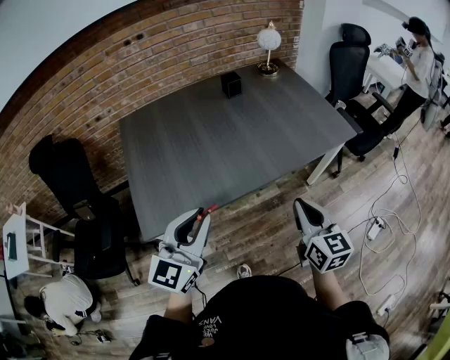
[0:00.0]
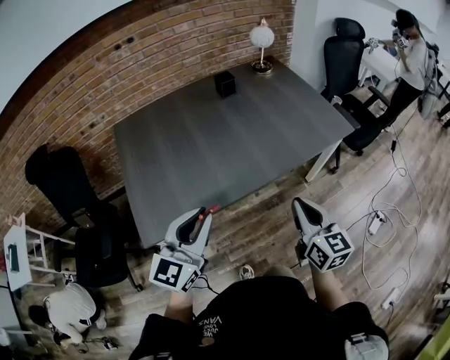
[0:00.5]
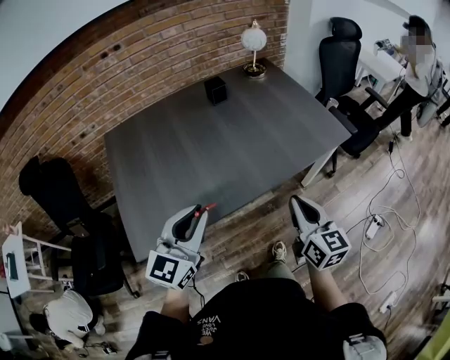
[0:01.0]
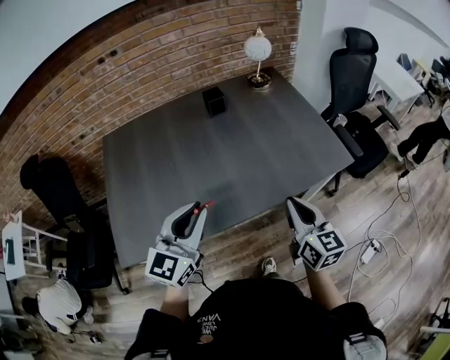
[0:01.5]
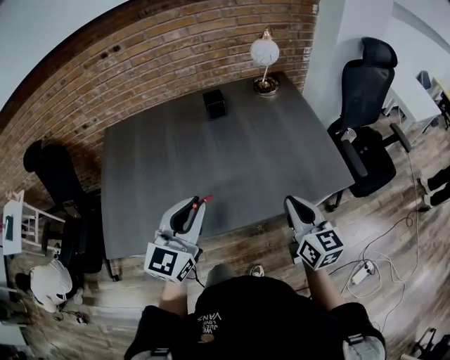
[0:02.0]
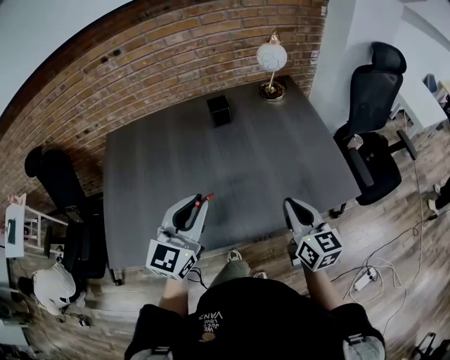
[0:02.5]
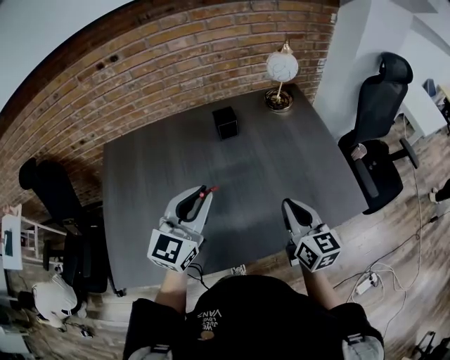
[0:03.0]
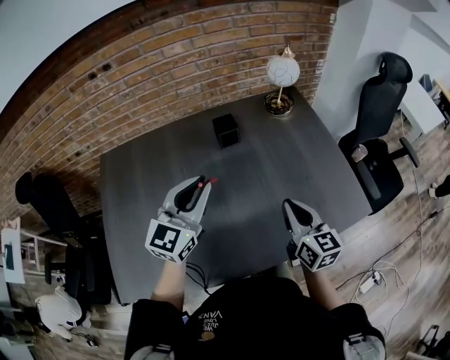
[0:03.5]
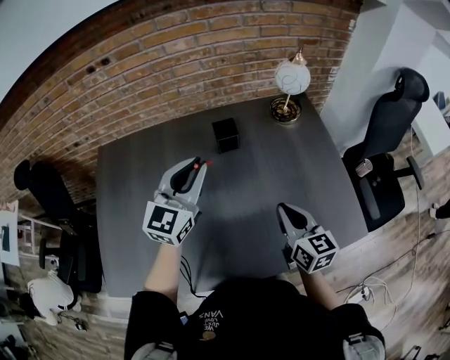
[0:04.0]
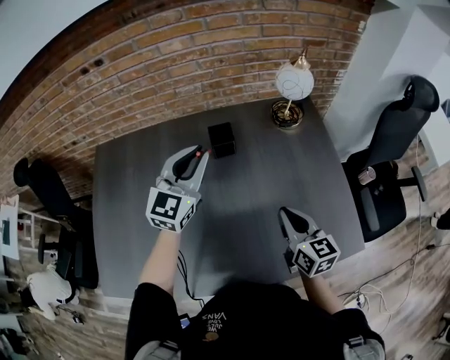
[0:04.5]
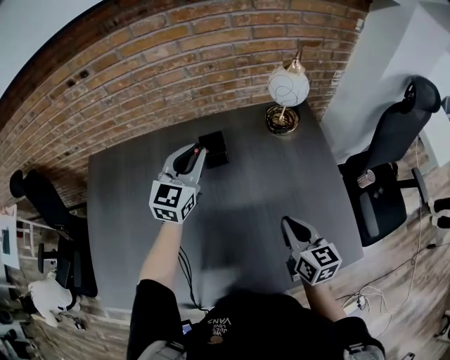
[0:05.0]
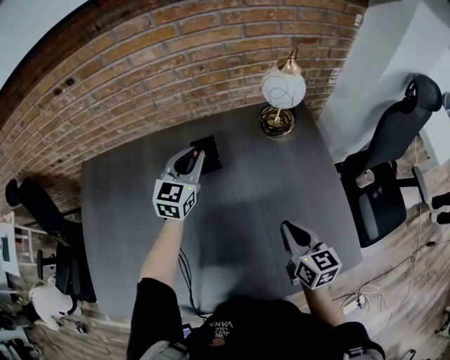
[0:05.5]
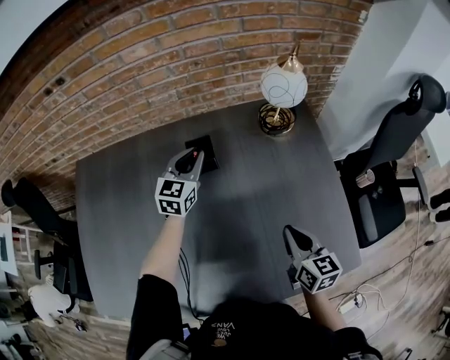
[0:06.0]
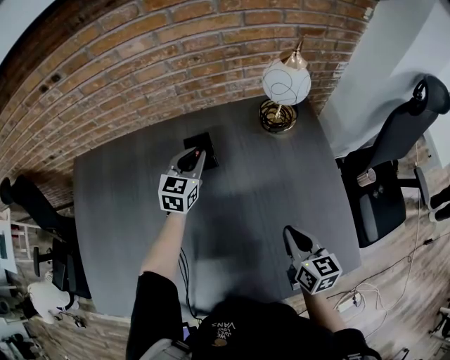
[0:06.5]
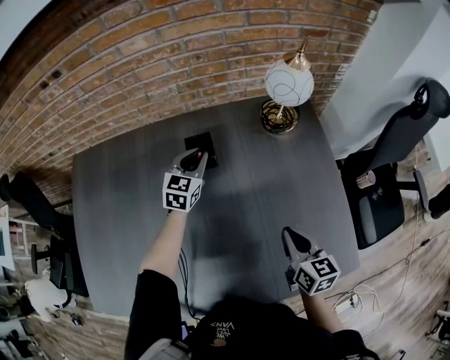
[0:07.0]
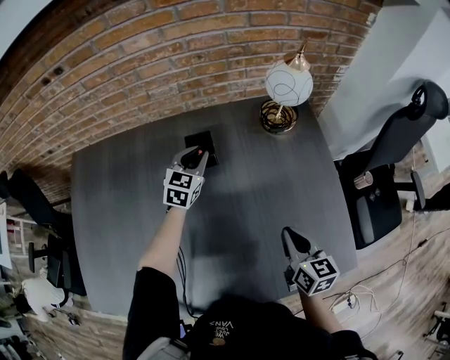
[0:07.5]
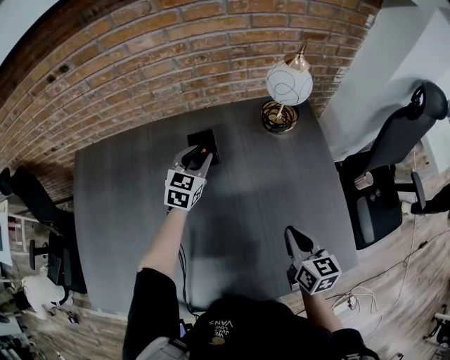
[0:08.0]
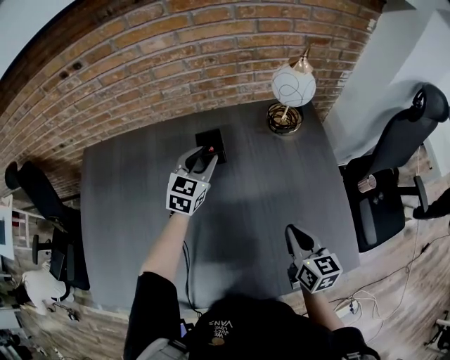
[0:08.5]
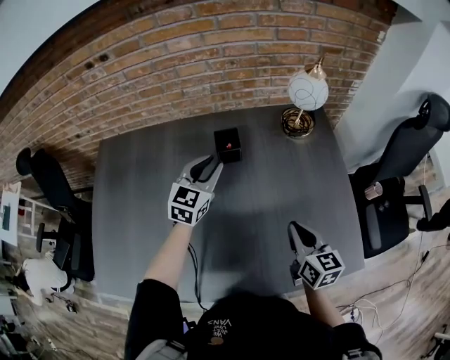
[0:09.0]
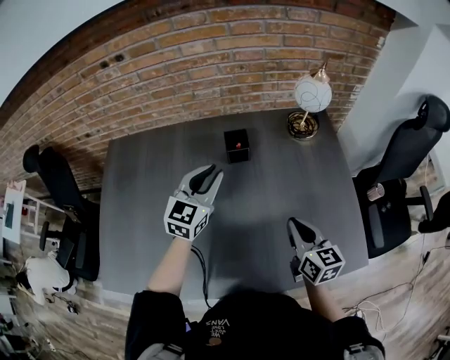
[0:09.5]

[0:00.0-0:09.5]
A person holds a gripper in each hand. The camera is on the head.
0.0 to 2.0 s: Both grippers travel together forward and to the right, roughly 30 cm.
2.0 to 4.0 s: Both grippers move forward, about 25 cm.
4.0 to 5.5 s: The right gripper travels to the right, forward and downward by approximately 10 cm. Meanwhile the left gripper heads forward and downward, covering some 20 cm.
5.5 to 7.5 s: The left gripper heads downward, covering roughly 10 cm.
7.5 to 9.5 s: The right gripper moves to the left and upward, about 10 cm, while the left gripper travels backward and upward by roughly 20 cm.

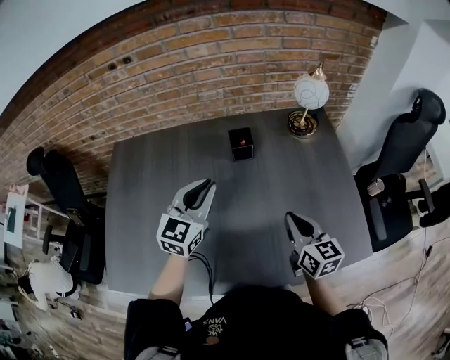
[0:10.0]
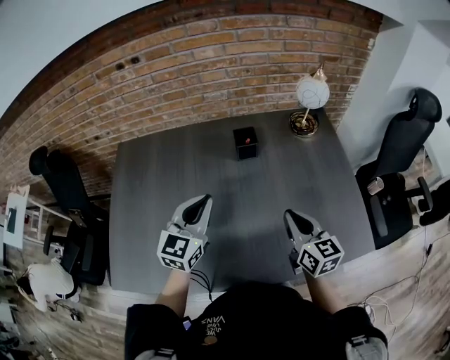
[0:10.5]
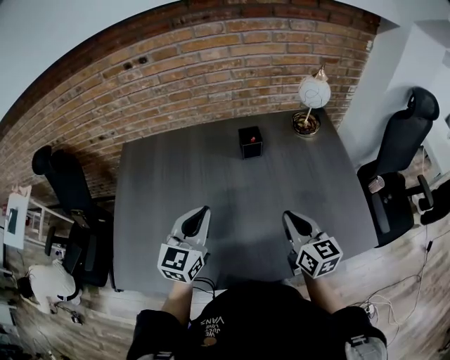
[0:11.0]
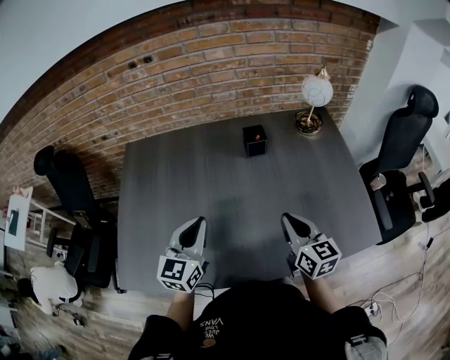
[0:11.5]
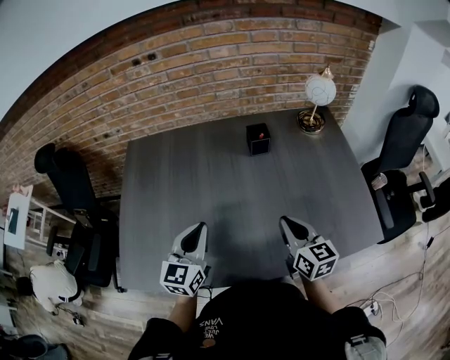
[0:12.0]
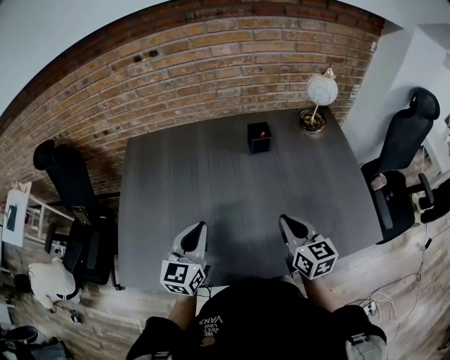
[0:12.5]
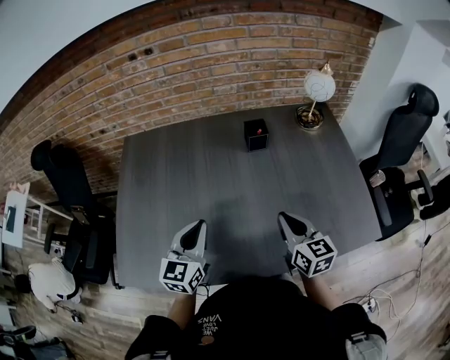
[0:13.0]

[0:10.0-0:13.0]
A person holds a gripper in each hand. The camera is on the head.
10.0 to 11.5 s: The left gripper shifts roughly 15 cm backward and to the left. The right gripper is displaced to the left and backward by about 10 cm.
11.5 to 13.0 s: The grippers stay close to where they were, moving slightly.

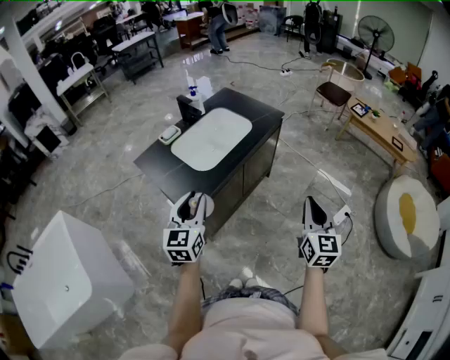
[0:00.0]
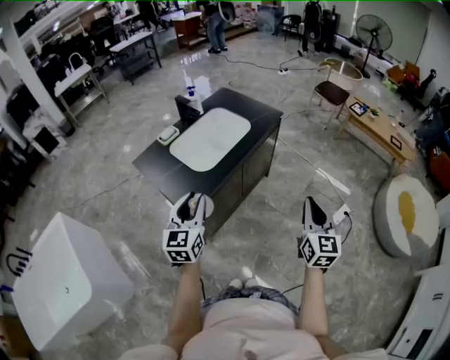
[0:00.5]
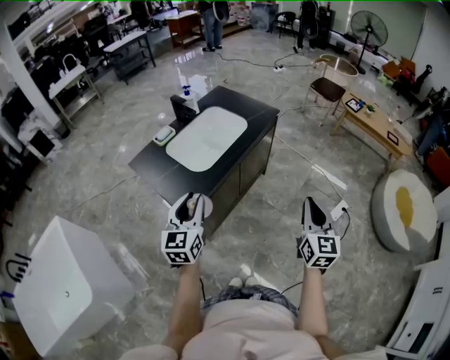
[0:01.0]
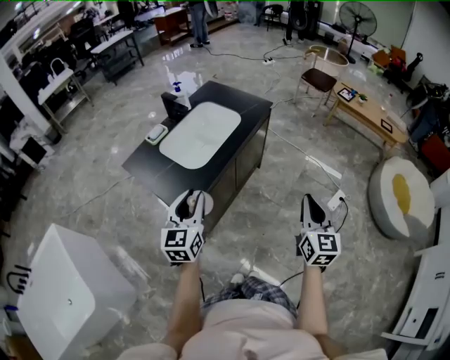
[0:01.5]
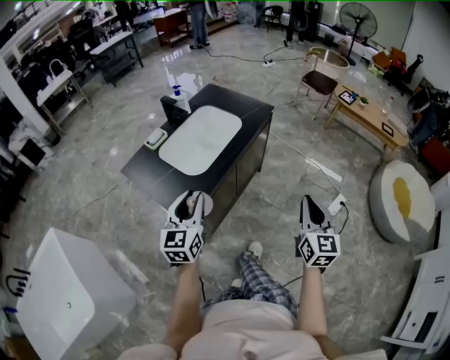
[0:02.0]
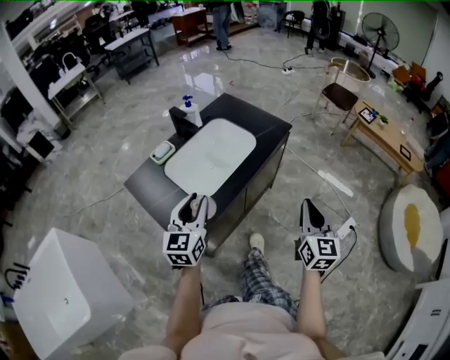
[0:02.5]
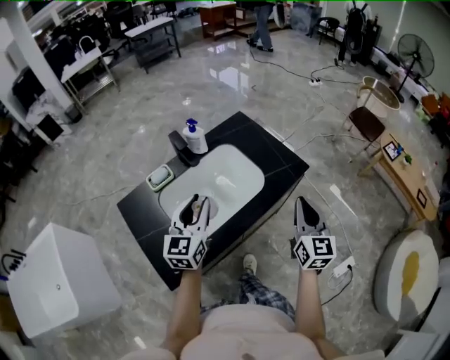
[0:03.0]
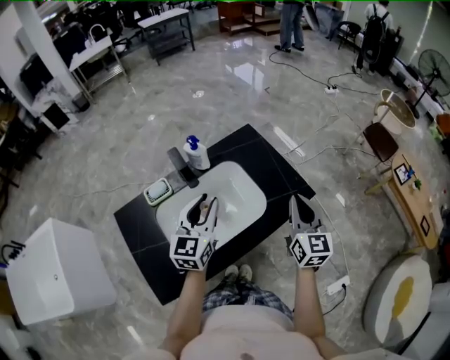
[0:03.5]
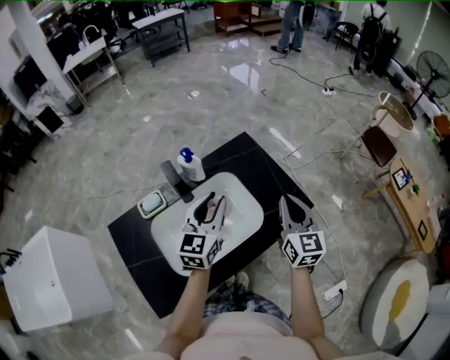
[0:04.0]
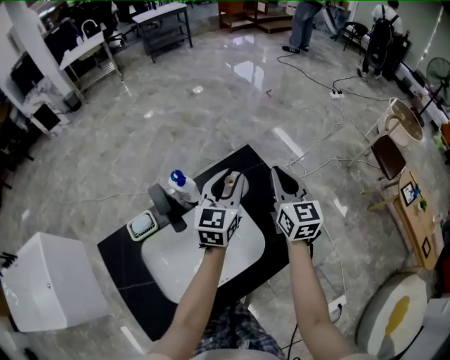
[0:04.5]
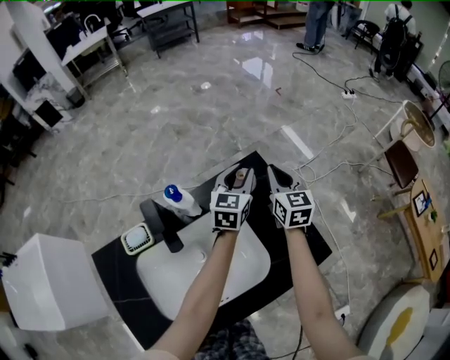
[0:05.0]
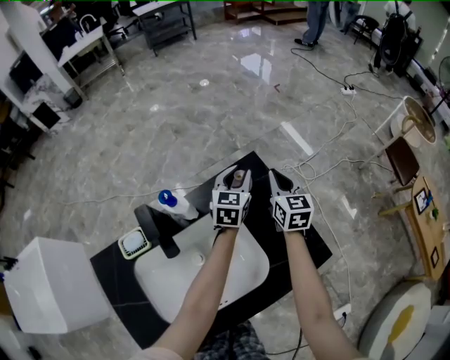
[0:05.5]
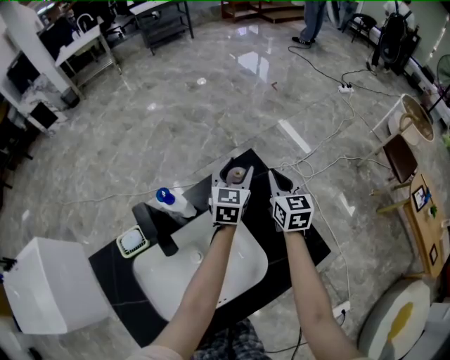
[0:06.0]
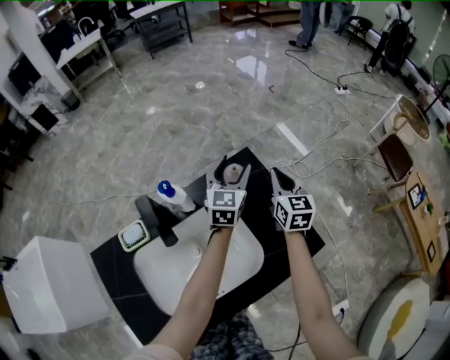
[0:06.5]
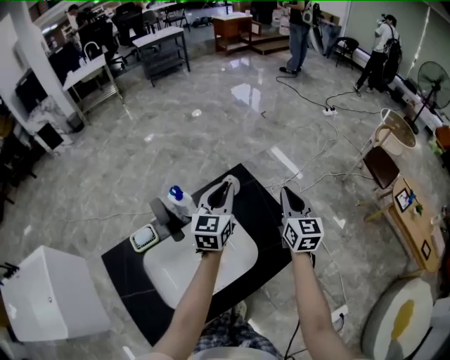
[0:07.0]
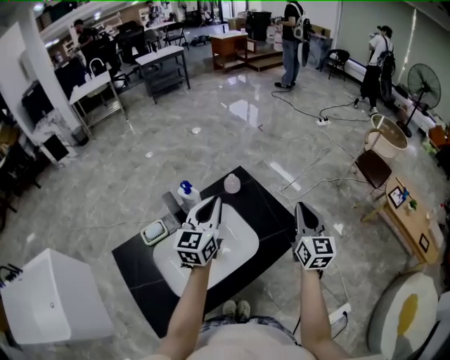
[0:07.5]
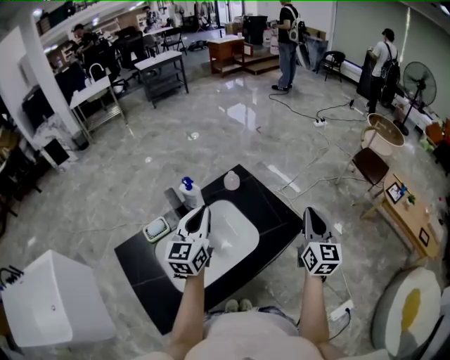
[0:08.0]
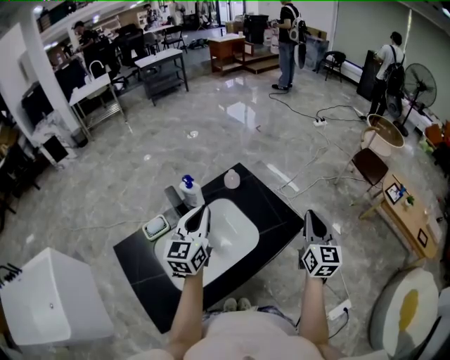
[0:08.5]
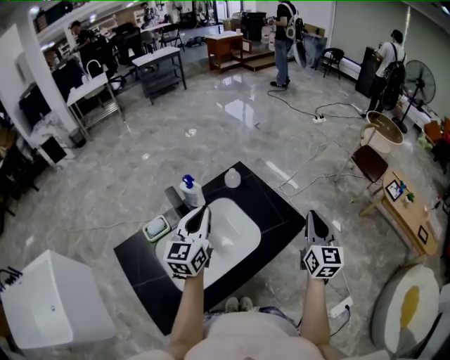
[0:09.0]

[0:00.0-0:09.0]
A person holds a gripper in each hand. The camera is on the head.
0.0 to 2.0 s: The left gripper heads forward, covering some 5 cm.
2.0 to 4.5 s: The two grippers travel together, forward, some 90 cm. The right gripper swivels about 30 degrees.
4.5 to 7.0 s: The right gripper travels to the right by roughly 10 cm, and goes forward and returns, approximately 15 cm each way; the left gripper travels downward and back again, roughly 15 cm each way, and opens and closes again.
7.0 to 9.0 s: Both grippers move backward, roughly 25 cm.

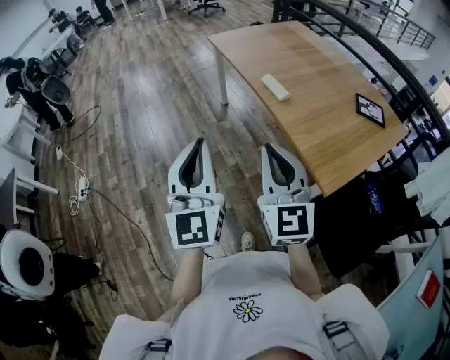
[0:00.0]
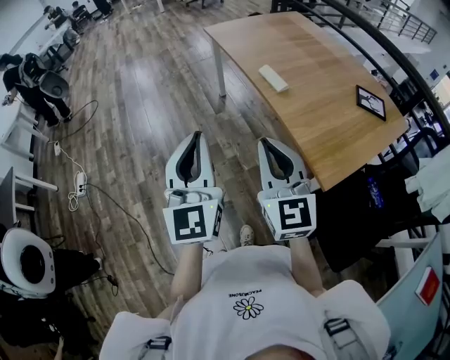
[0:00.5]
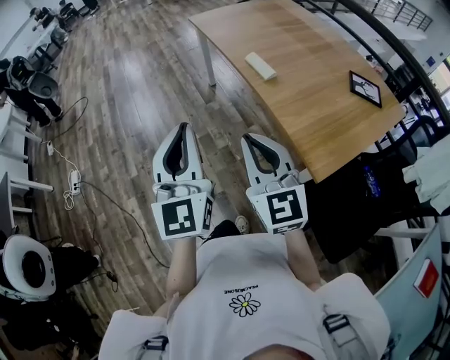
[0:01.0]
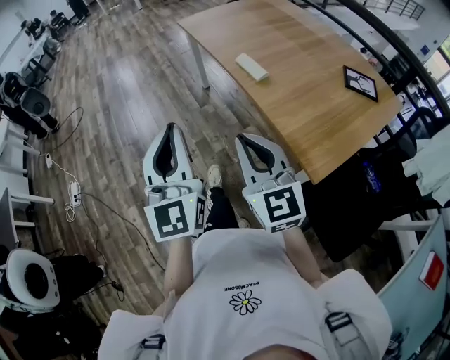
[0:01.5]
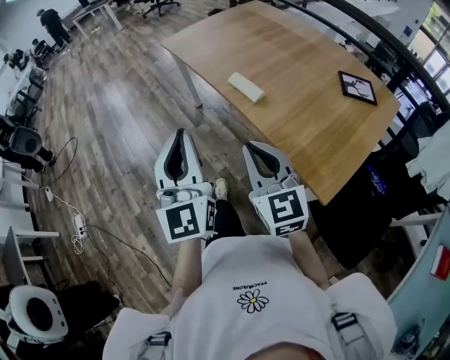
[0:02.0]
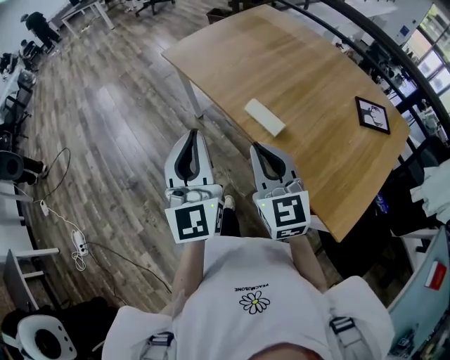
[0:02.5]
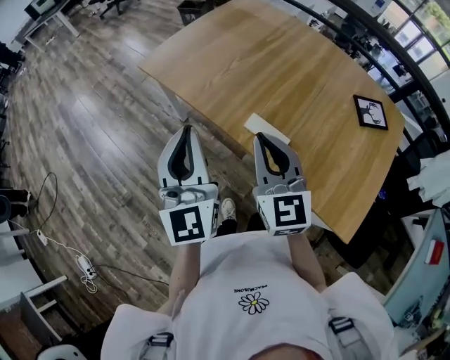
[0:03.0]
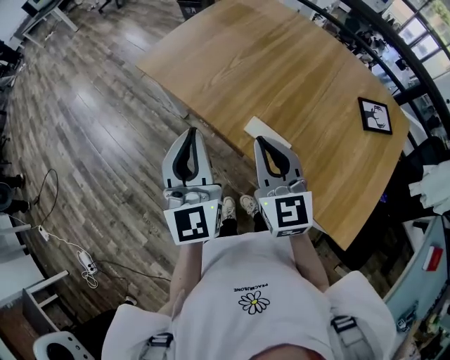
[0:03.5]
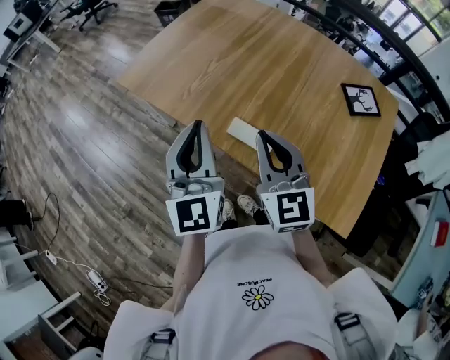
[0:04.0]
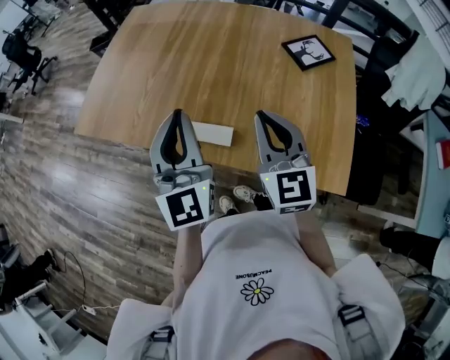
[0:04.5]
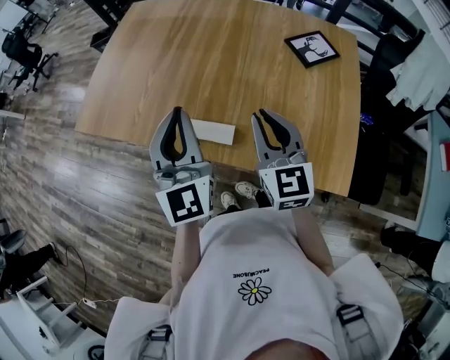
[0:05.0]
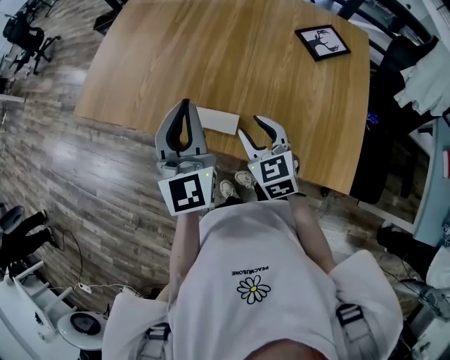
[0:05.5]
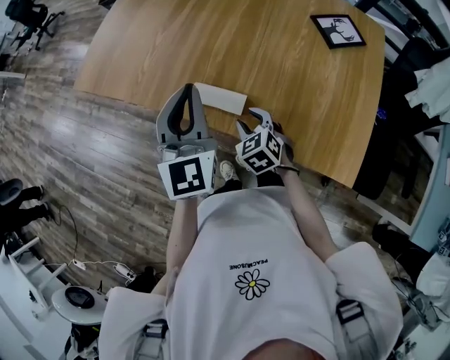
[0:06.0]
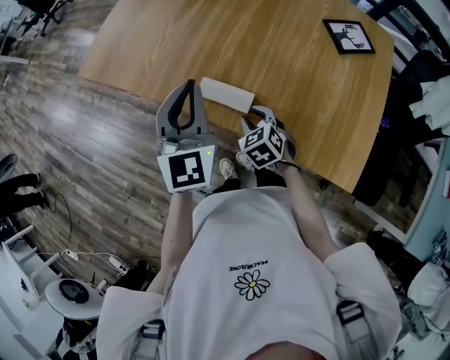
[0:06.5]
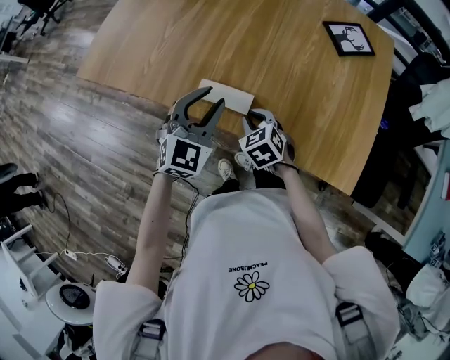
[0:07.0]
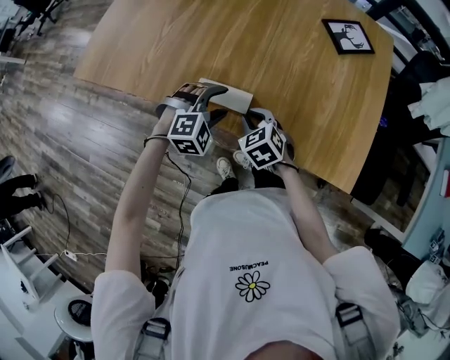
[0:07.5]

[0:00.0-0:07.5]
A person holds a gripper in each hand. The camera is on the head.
0.0 to 2.0 s: The left gripper travels forward and to the right by about 15 cm; the right gripper heads forward, downward and to the right, covering approximately 15 cm.
2.0 to 4.0 s: The grippers both shift forward by some 30 cm. The left gripper changes its angle by some 20 degrees. The right gripper turns by some 20 degrees.
4.0 to 5.5 s: The left gripper is displaced to the right by about 10 cm, while the right gripper travels downward and to the right by some 20 cm, rotates approximately 20 degrees, and opens up.
5.5 to 7.5 s: The right gripper goes approximately 15 cm downward, swivels roughly 30 degrees, and closes up. Meanwhile the left gripper is displaced downward by approximately 25 cm, tips its fingers downward by approximately 50 degrees, and opens.
